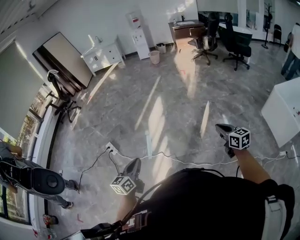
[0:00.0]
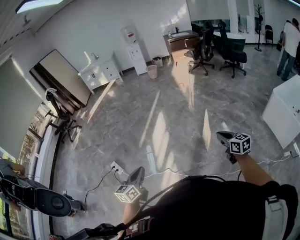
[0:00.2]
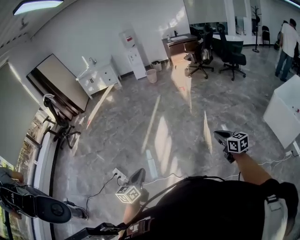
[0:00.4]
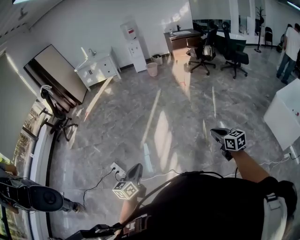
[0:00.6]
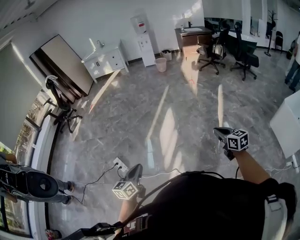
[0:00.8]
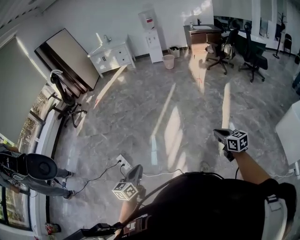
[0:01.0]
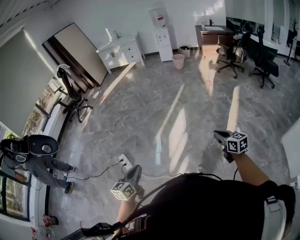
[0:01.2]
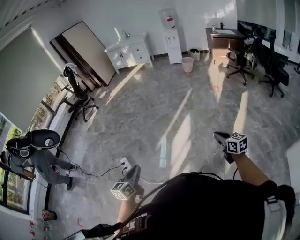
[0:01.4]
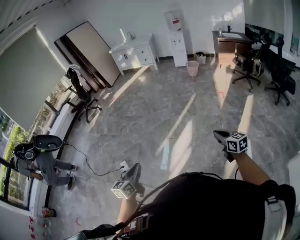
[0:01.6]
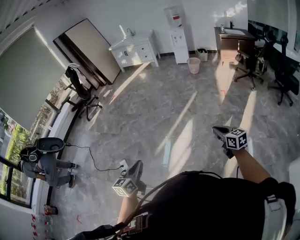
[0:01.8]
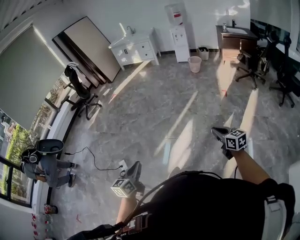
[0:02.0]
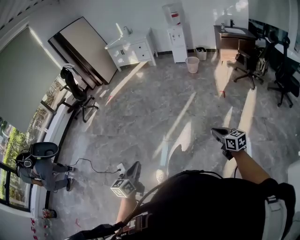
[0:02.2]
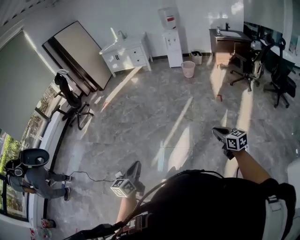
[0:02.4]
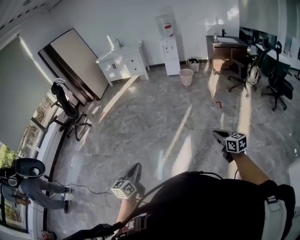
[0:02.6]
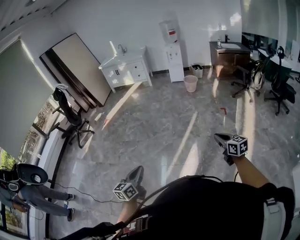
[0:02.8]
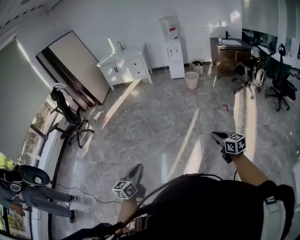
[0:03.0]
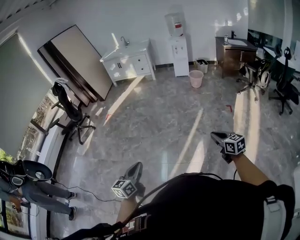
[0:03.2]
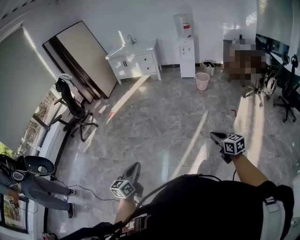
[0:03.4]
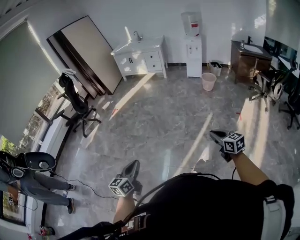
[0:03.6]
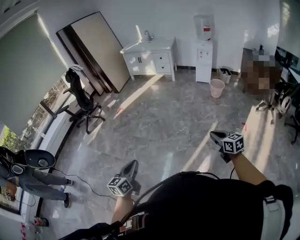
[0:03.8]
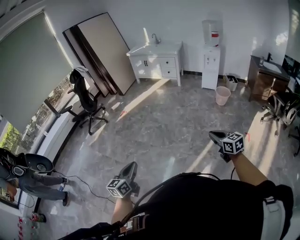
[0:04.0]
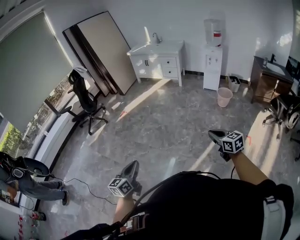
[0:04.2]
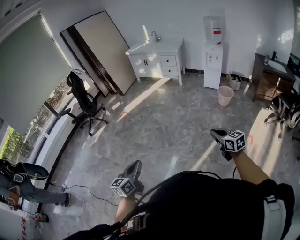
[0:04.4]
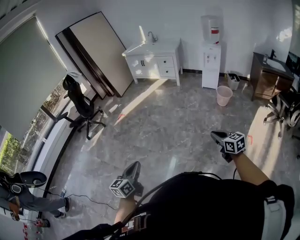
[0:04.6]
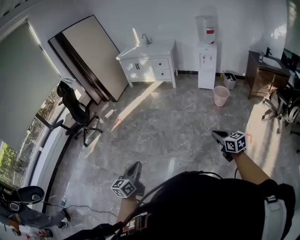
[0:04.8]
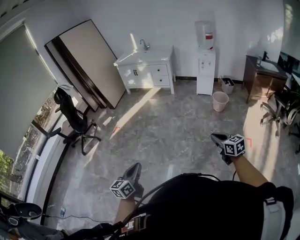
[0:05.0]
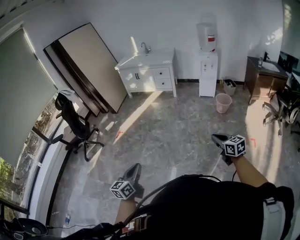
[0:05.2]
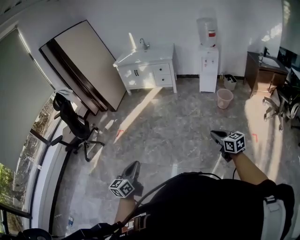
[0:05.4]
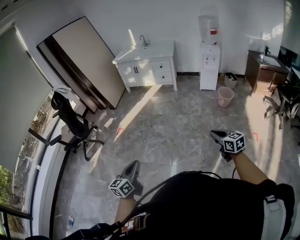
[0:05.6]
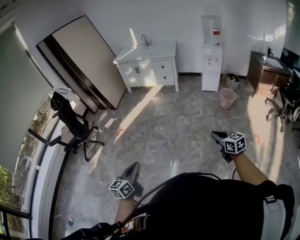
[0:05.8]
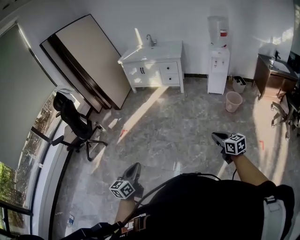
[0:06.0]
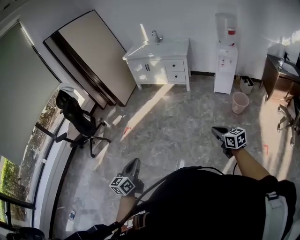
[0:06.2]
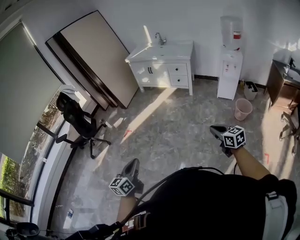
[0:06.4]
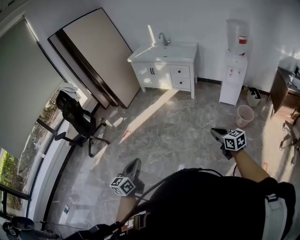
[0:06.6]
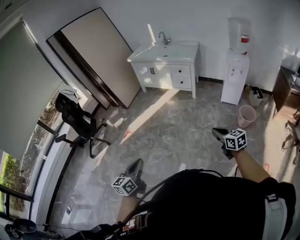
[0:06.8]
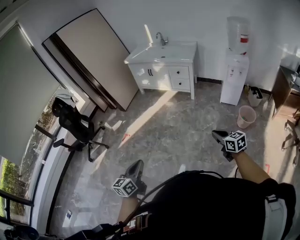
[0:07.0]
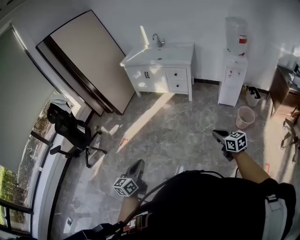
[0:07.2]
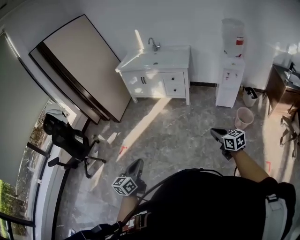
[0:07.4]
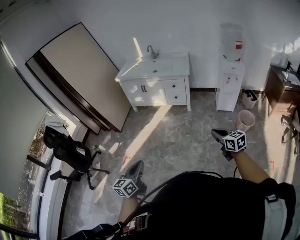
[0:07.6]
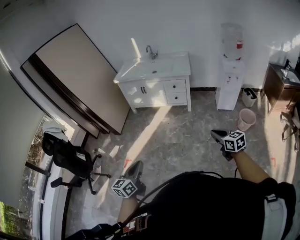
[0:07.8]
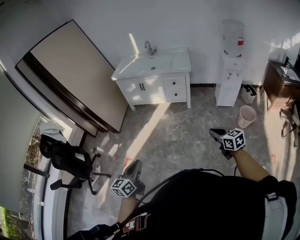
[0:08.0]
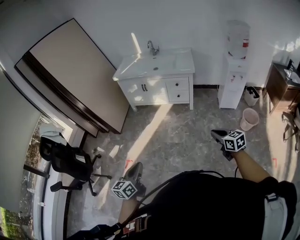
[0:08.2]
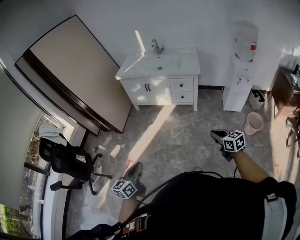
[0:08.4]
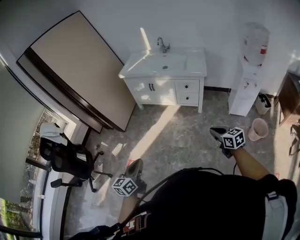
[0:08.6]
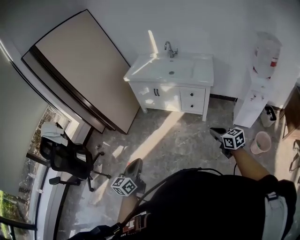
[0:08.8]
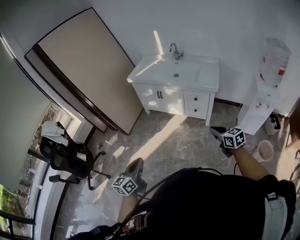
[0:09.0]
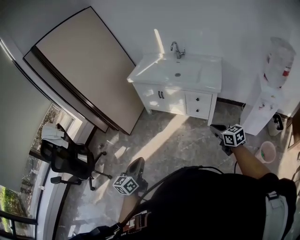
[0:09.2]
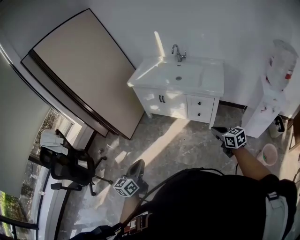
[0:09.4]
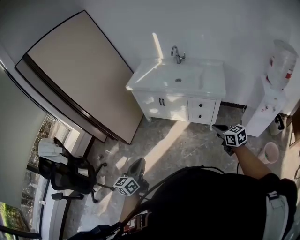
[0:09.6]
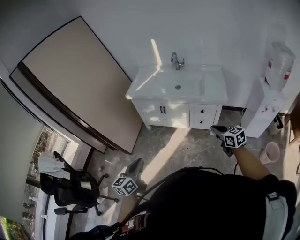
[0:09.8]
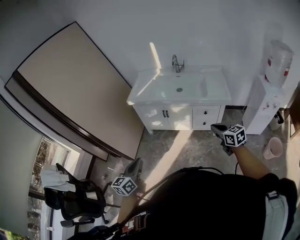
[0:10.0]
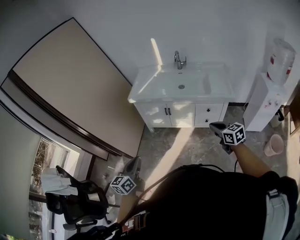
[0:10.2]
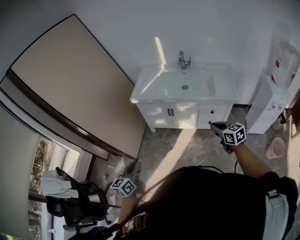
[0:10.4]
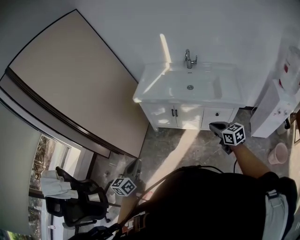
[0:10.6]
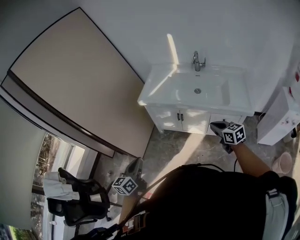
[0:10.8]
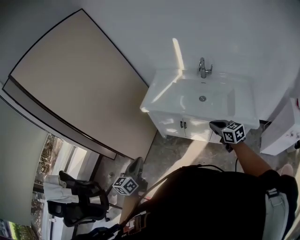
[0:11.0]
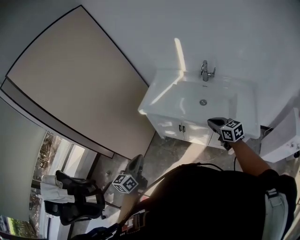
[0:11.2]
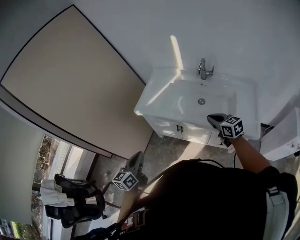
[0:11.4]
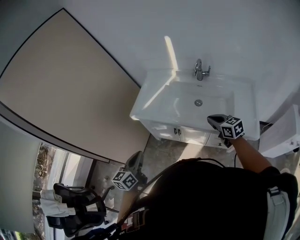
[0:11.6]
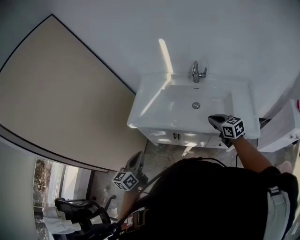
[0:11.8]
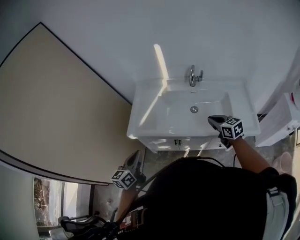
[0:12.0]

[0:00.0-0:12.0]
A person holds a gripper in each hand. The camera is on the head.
0:00.0 to 0:01.6: The pair of grippers is taken forward, approximately 50 cm.
0:01.6 to 0:03.0: Both grippers move forward, approximately 40 cm.
0:03.0 to 0:04.4: The grippers both shift forward by some 35 cm. The right gripper swivels approximately 20 degrees.
0:04.4 to 0:06.0: Both grippers travel together forward and to the left, approximately 40 cm.
0:06.0 to 0:07.6: The two grippers travel together, forward, approximately 40 cm.
0:07.6 to 0:09.0: Both grippers travel together forward, some 40 cm.
0:09.0 to 0:10.4: Both grippers travel together forward and to the left, roughly 40 cm.
0:10.4 to 0:12.0: The pair of grippers is taken forward, roughly 50 cm.

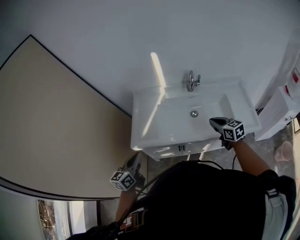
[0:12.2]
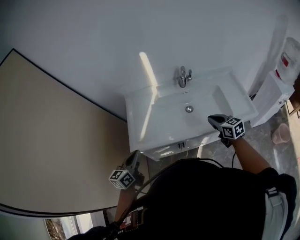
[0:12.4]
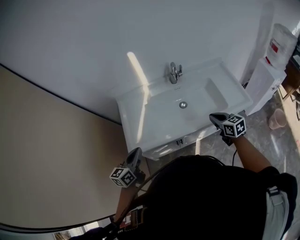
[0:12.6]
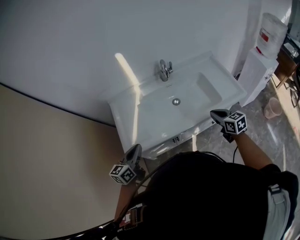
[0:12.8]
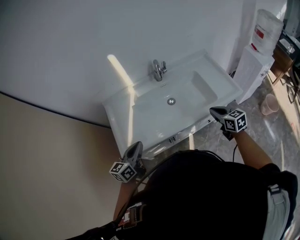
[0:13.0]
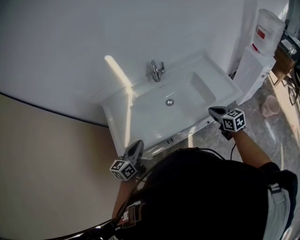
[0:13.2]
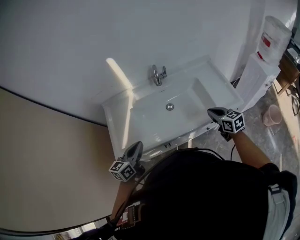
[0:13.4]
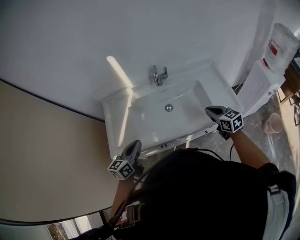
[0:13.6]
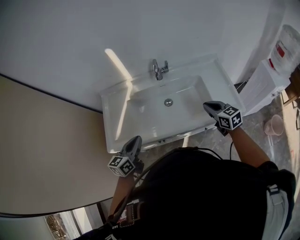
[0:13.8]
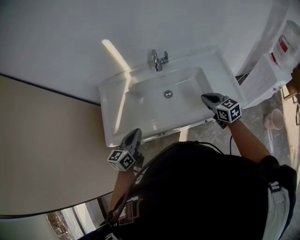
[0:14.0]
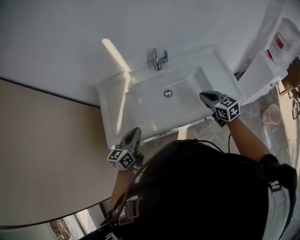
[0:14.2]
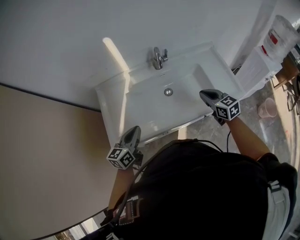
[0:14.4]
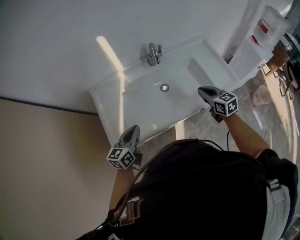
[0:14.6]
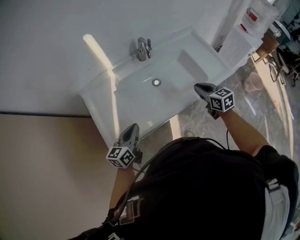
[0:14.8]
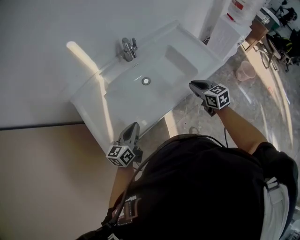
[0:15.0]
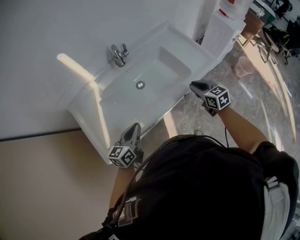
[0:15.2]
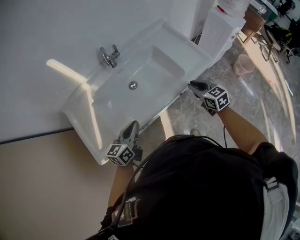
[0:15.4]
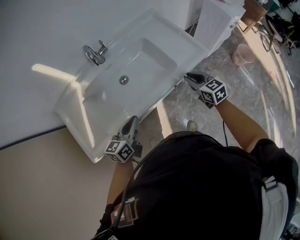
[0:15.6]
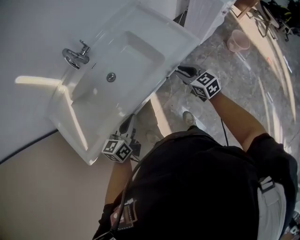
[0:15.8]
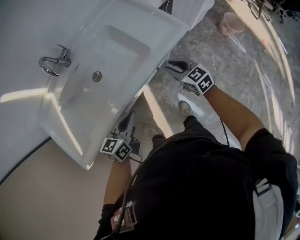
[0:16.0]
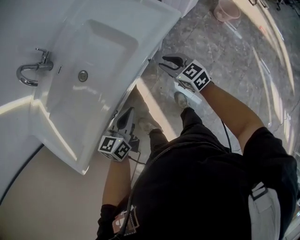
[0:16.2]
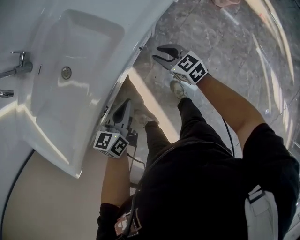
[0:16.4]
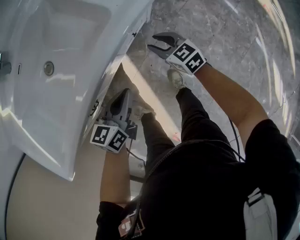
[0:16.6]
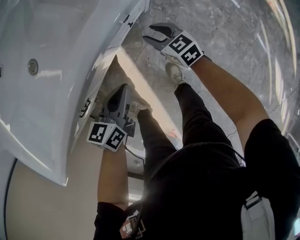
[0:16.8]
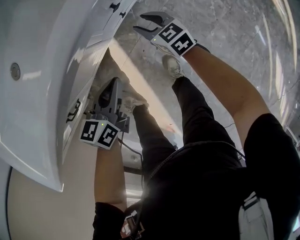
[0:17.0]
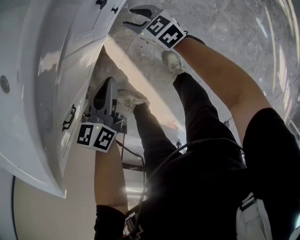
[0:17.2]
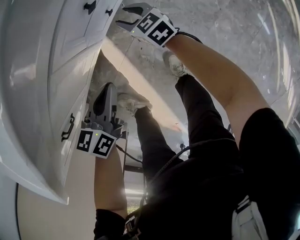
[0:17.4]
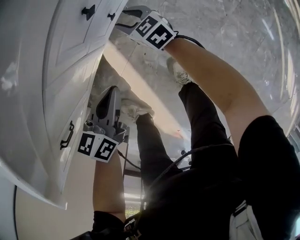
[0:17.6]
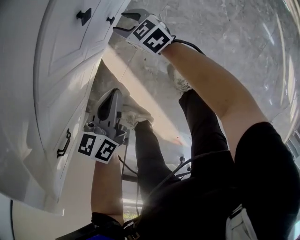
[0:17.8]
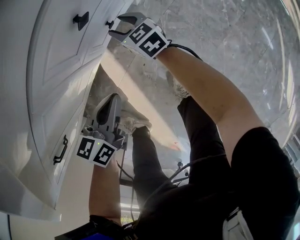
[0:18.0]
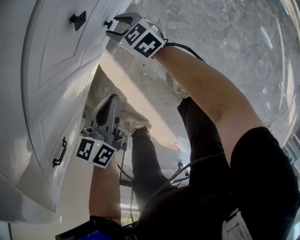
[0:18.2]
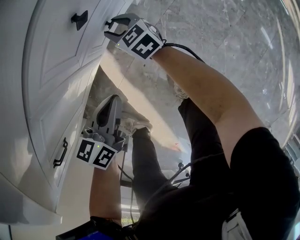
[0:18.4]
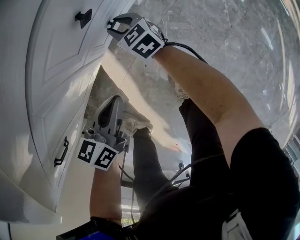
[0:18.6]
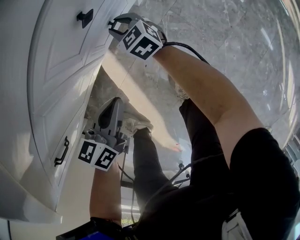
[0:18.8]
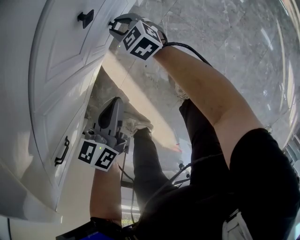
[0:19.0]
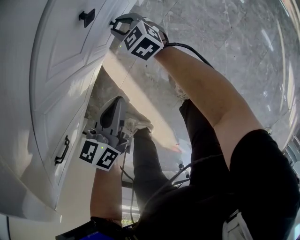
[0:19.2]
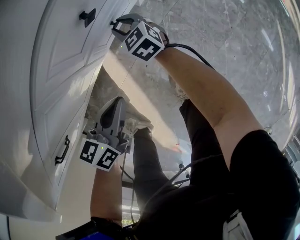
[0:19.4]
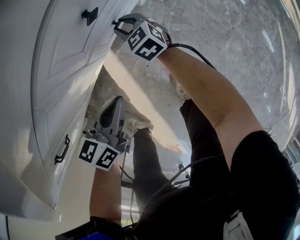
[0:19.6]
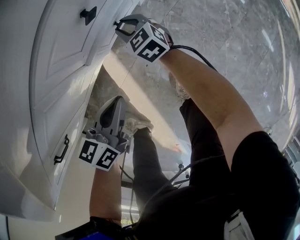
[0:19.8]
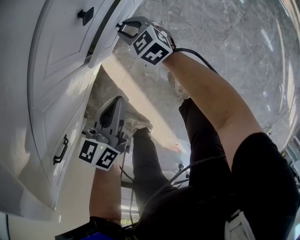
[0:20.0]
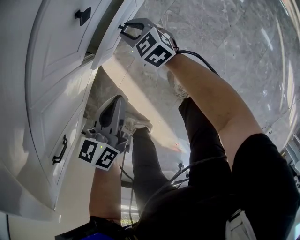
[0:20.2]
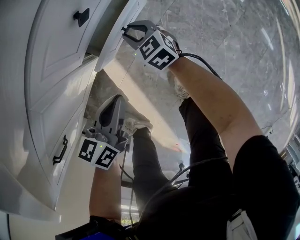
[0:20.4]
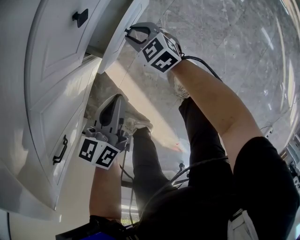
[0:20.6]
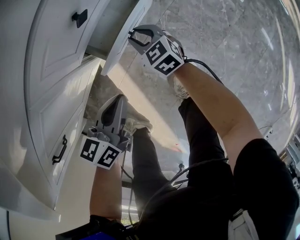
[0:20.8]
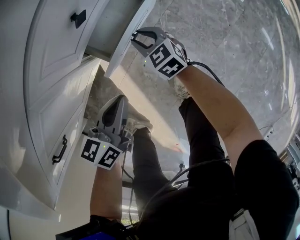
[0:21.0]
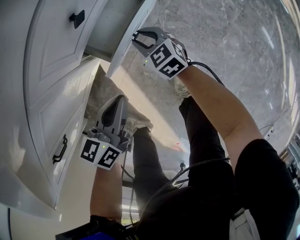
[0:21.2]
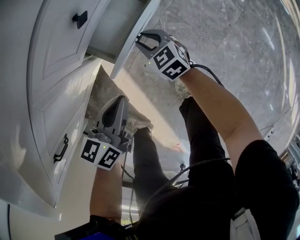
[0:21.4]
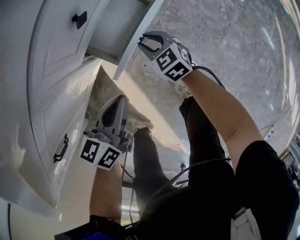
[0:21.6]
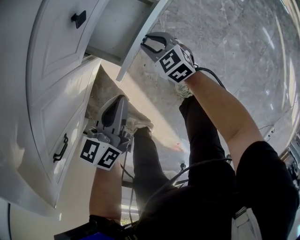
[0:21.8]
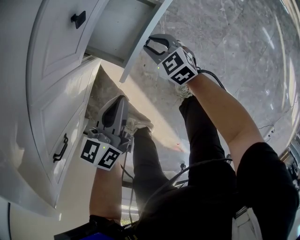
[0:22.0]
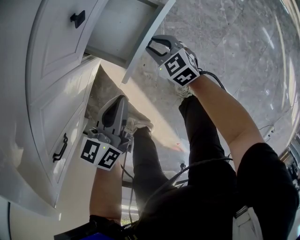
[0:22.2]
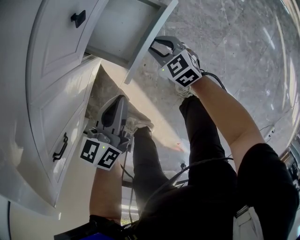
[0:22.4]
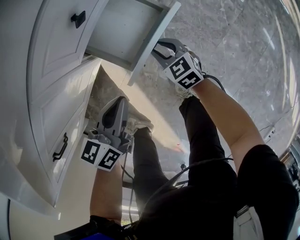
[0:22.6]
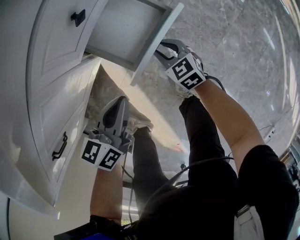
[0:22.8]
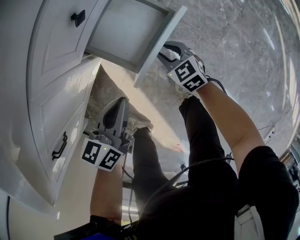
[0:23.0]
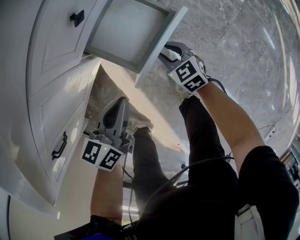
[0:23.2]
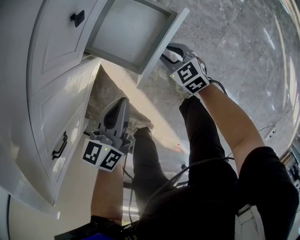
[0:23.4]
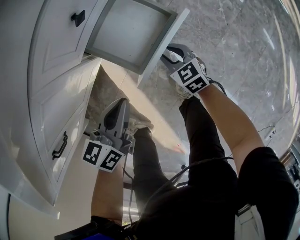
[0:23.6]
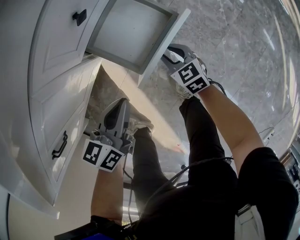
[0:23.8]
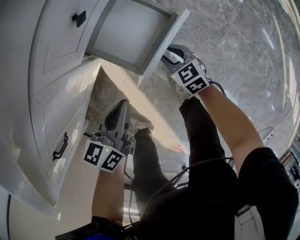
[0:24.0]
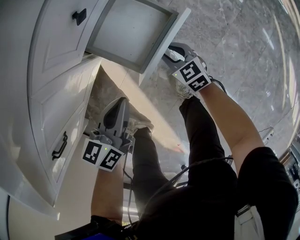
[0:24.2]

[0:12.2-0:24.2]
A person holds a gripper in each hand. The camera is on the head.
0:12.2 to 0:13.8: The right gripper goes about 15 cm to the right. The left gripper goes about 20 cm to the right and forward.
0:13.8 to 0:15.2: The right gripper shifts by roughly 10 cm, and changes its angle by some 30 degrees. Meanwhile the left gripper moves downward, approximately 5 cm, and swivels roughly 30 degrees.
0:15.2 to 0:16.6: The left gripper is displaced to the right and downward by approximately 40 cm, and turns by some 20 degrees, while the right gripper goes some 40 cm downward and to the right, and opens up.
0:16.6 to 0:18.2: The two grippers go some 30 cm downward.
0:18.2 to 0:19.8: The grippers make only small movements.
0:19.8 to 0:21.2: The right gripper goes some 10 cm backward and to the right.
0:21.2 to 0:22.6: The right gripper shifts approximately 5 cm backward and to the right.
0:22.6 to 0:24.2: The grippers move only a little.
